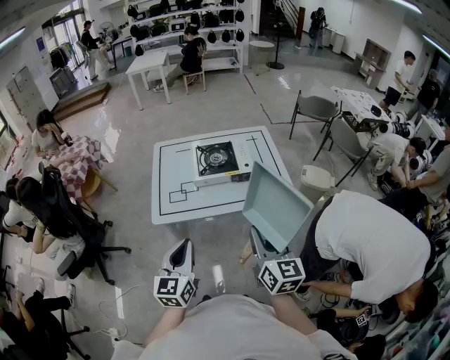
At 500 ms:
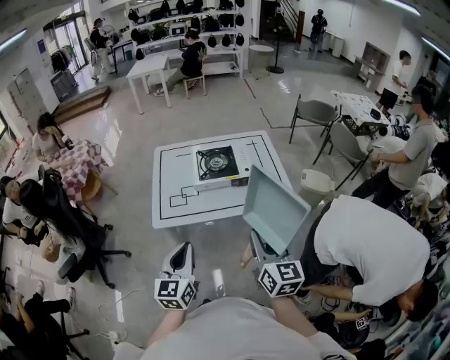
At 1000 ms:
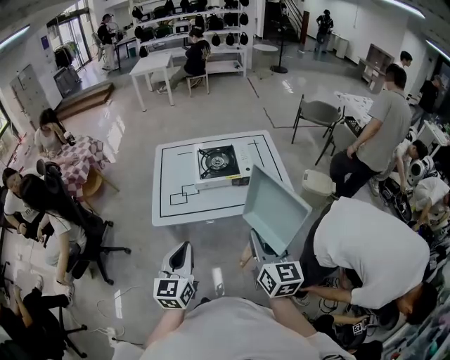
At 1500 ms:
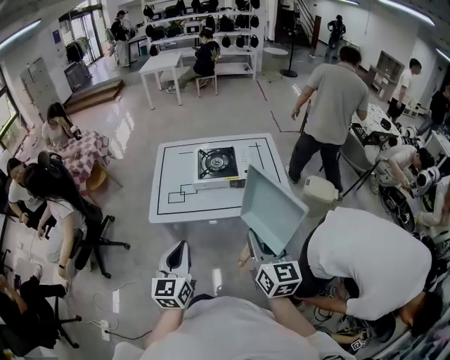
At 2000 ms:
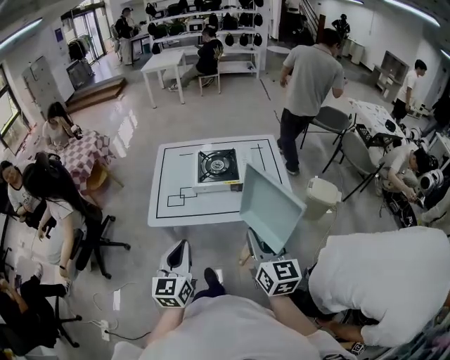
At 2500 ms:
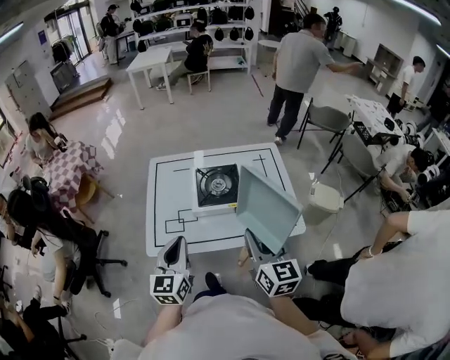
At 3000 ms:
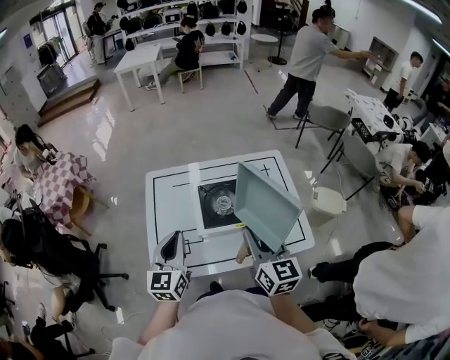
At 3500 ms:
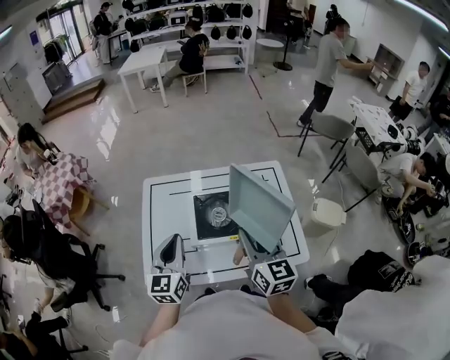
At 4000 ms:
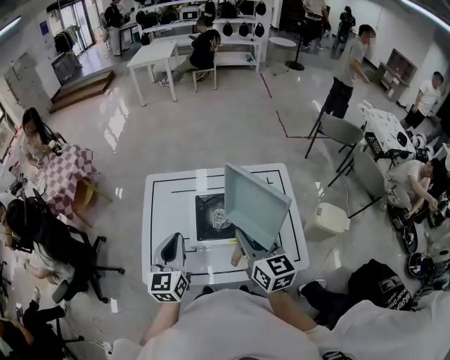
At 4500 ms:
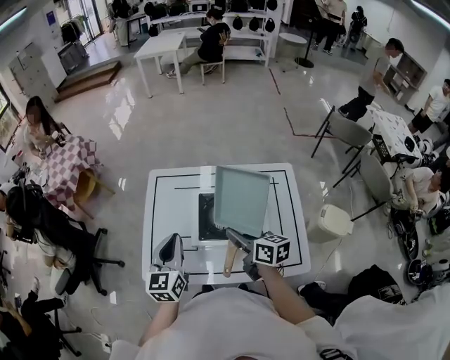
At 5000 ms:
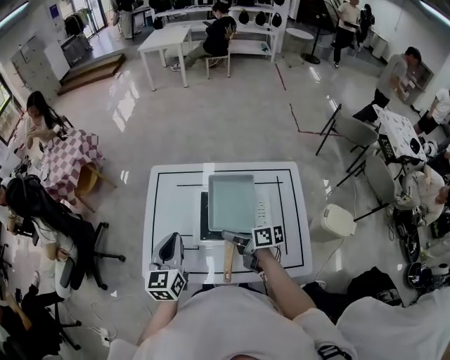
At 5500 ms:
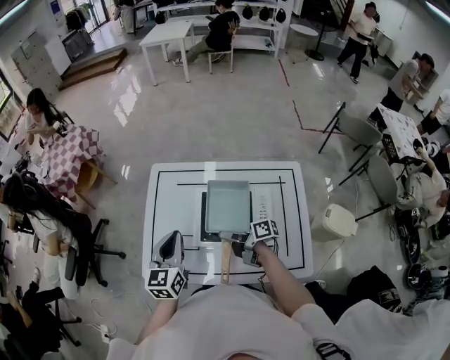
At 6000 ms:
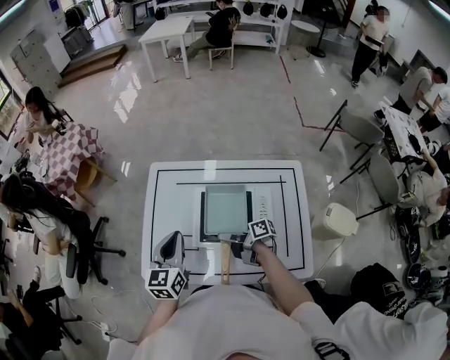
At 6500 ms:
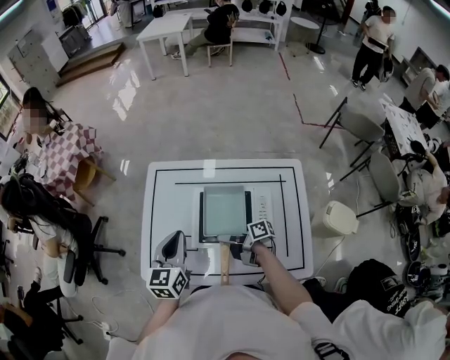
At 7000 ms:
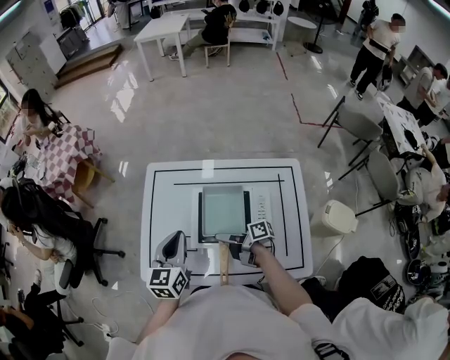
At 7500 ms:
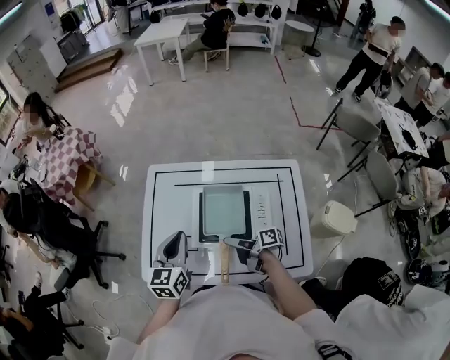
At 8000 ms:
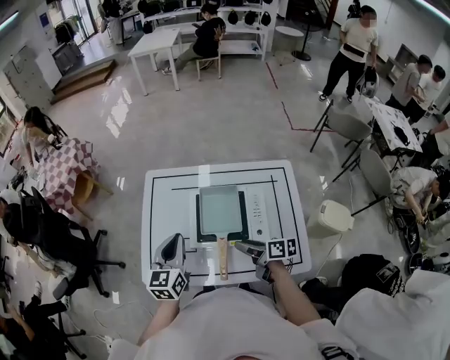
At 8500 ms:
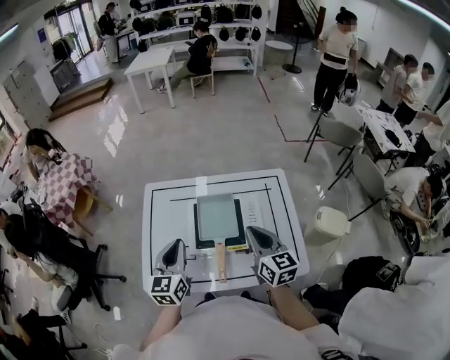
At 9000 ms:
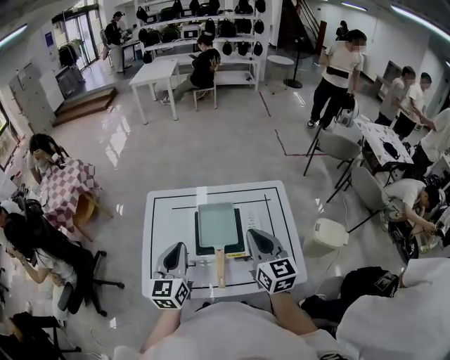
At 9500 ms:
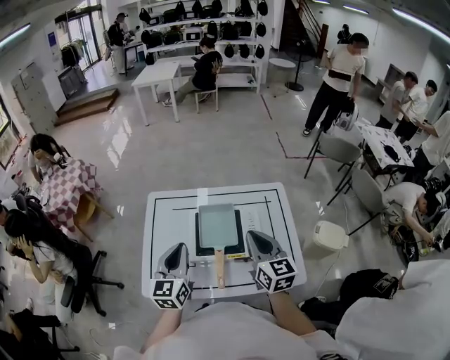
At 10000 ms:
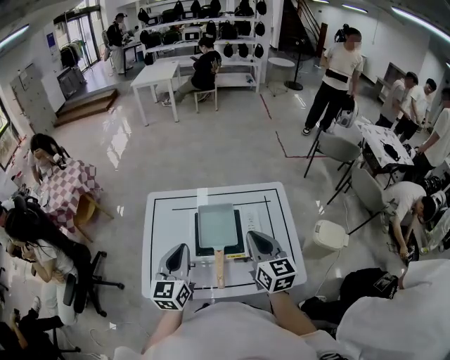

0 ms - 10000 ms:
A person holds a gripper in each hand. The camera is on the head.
0 ms - 2000 ms: The right gripper moves approximately 5 cm.
2000 ms - 4000 ms: Both grippers travel together forward, approximately 35 cm.
4000 ms - 6000 ms: The right gripper travels downward by about 25 cm, and rotates roughly 80 degrees; the left gripper changes place by about 5 cm.
6000 ms - 8000 ms: The right gripper travels backward, upward and to the right by approximately 10 cm, turns by about 30 degrees, and opens.
8000 ms - 10000 ms: The left gripper moves upward, approximately 5 cm. Meanwhile the right gripper shifts some 20 cm upward, rotates some 60 degrees, and closes.

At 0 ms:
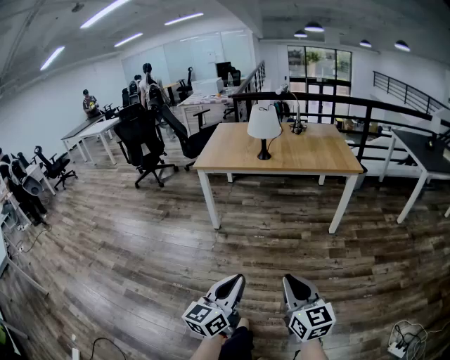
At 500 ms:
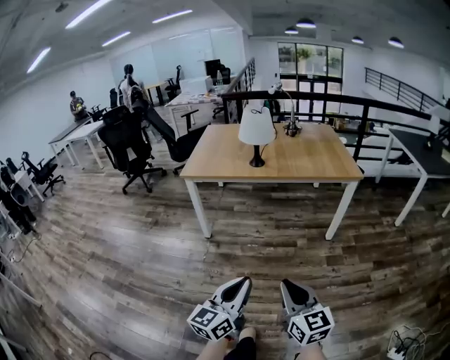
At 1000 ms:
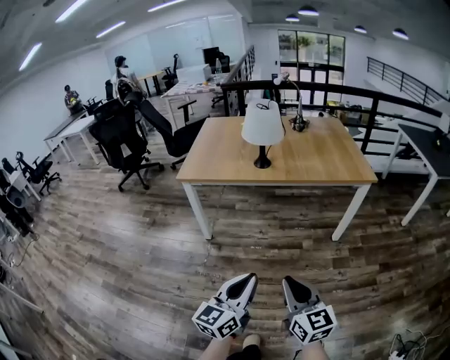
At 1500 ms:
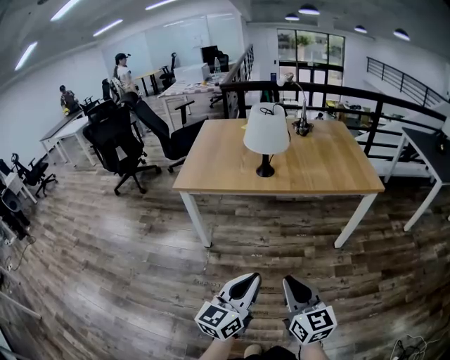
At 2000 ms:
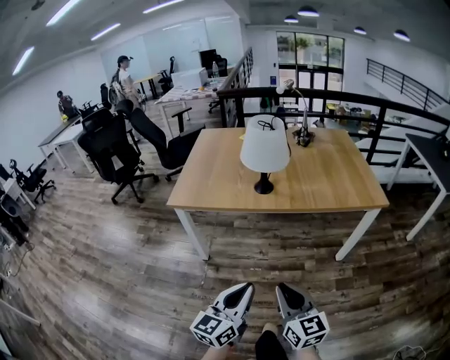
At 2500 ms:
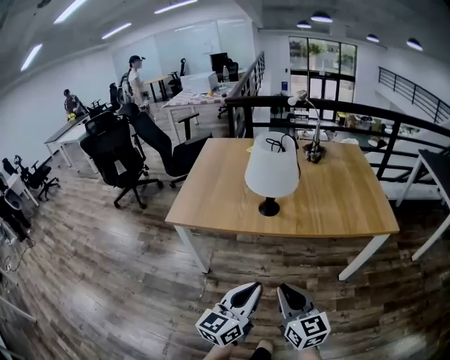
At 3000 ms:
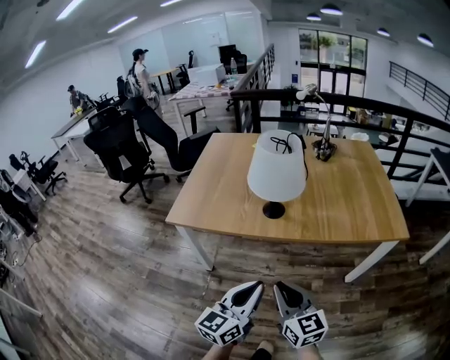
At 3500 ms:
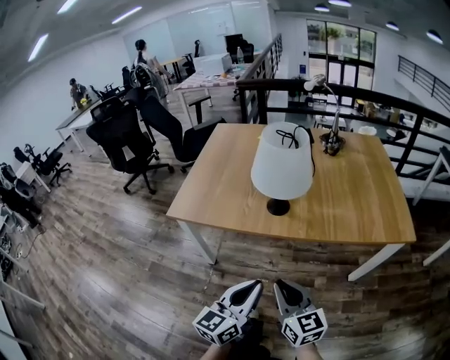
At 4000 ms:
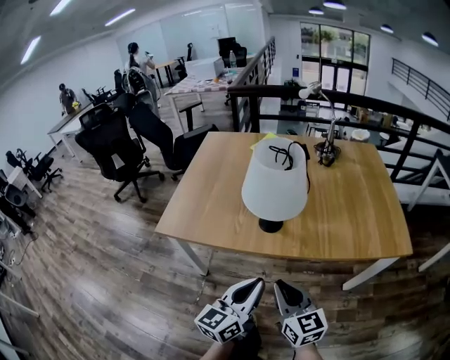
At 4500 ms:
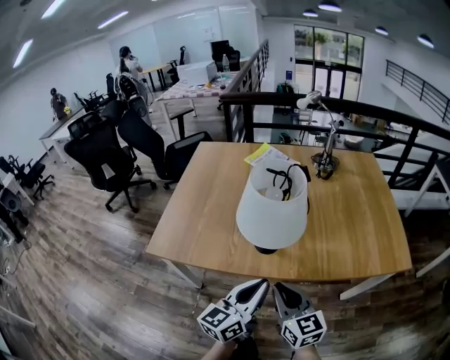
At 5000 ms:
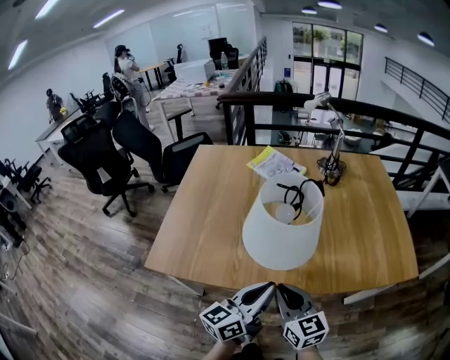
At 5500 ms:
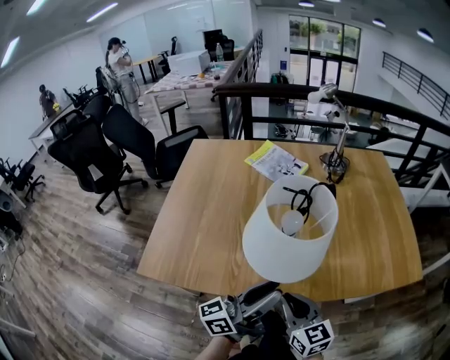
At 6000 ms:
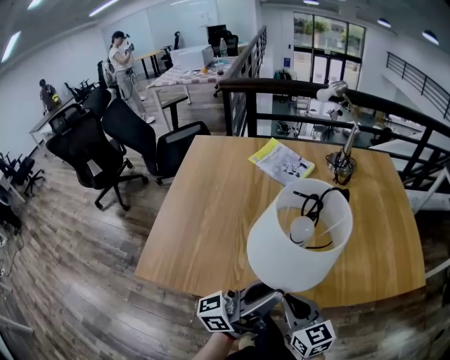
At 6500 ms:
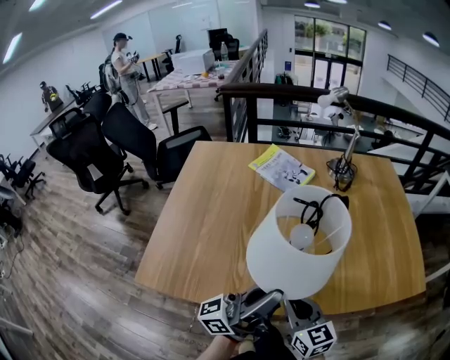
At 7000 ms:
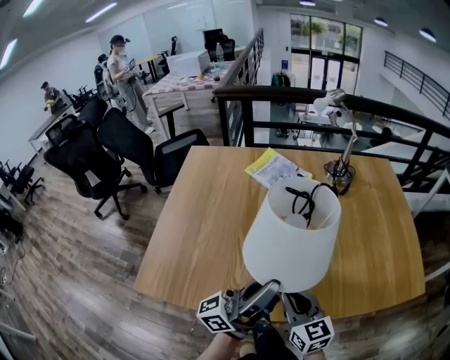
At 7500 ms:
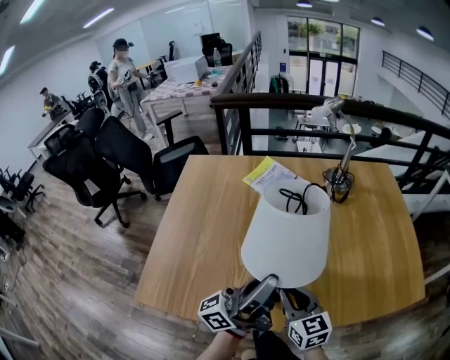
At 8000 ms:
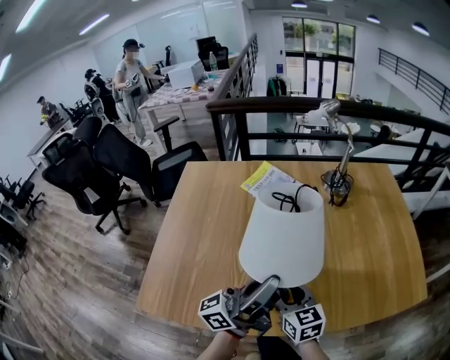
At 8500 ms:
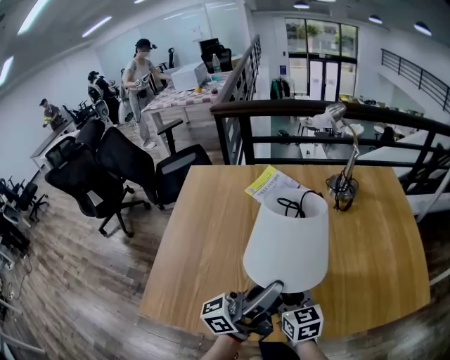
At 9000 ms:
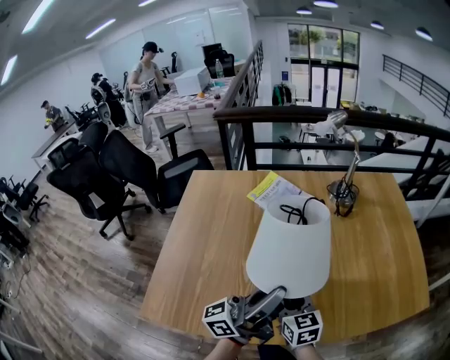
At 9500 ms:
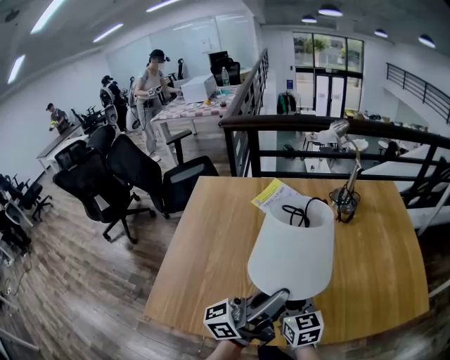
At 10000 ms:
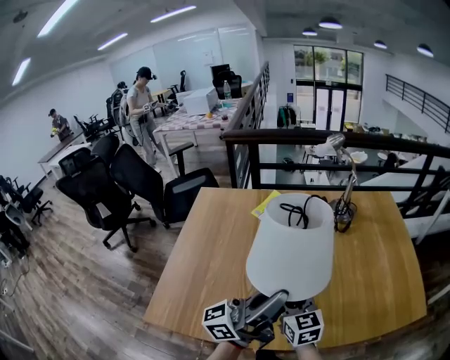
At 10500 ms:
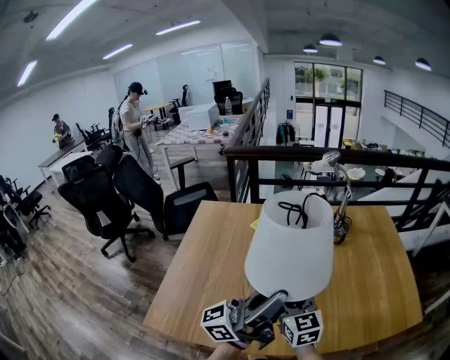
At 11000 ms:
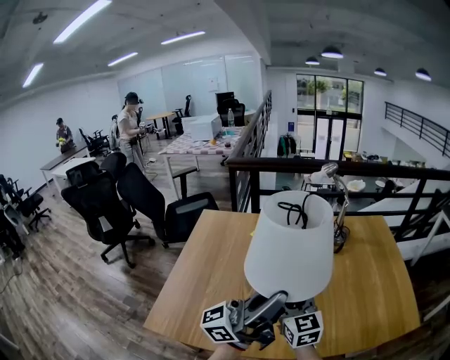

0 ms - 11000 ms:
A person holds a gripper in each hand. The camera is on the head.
0 ms - 2000 ms: Both grippers are carried forward, some 40 cm.
2000 ms - 3500 ms: The grippers both shift forward by approximately 20 cm.
3500 ms - 5500 ms: Both grippers move forward, roughly 25 cm. The left gripper turns by roughly 50 degrees, and opens its fingers.
5500 ms - 7500 ms: The right gripper moves forward, about 10 cm; the left gripper goes roughly 15 cm forward and upward, and closes its fingers.
7500 ms - 9000 ms: The right gripper moves roughly 5 cm, and opens its fingers.
9000 ms - 11000 ms: Both grippers travel together upward, roughly 15 cm. The right gripper rotates about 20 degrees.

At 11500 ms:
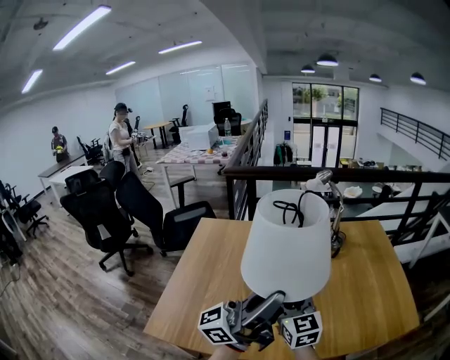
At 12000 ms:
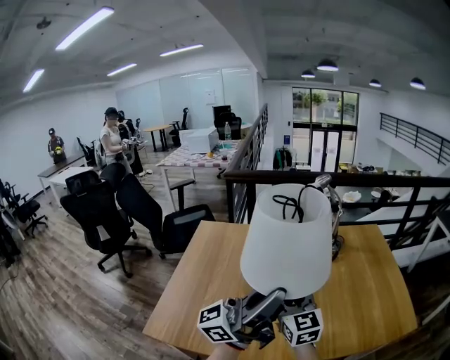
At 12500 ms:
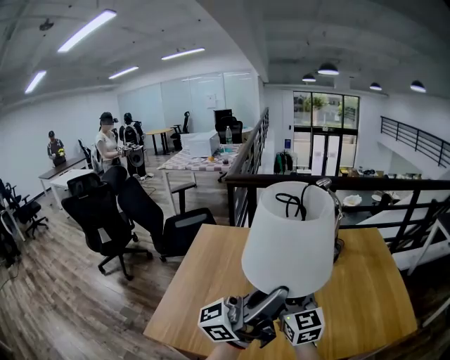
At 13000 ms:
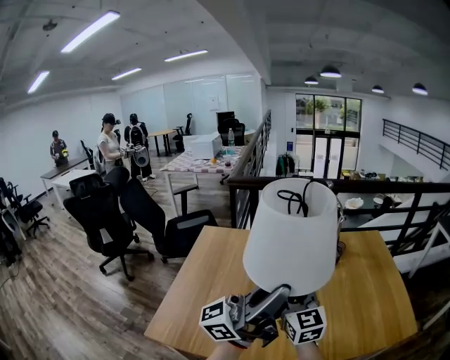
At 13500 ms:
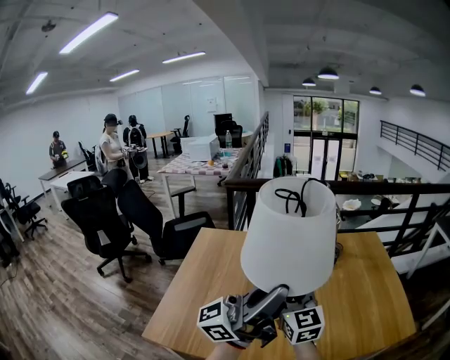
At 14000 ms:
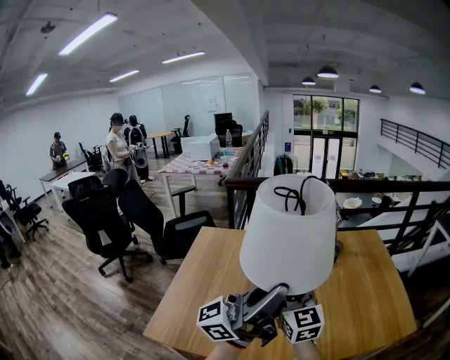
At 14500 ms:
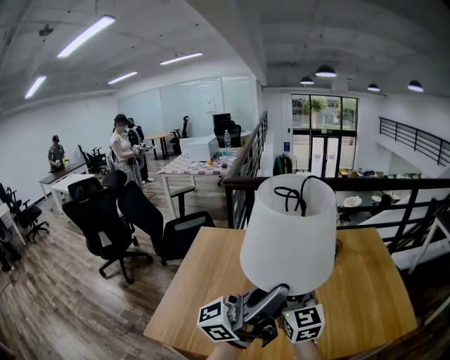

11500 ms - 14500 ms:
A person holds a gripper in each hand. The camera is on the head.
11500 ms - 13000 ms: The right gripper travels upward by about 5 cm.
13000 ms - 14500 ms: The grippers make only small movements.

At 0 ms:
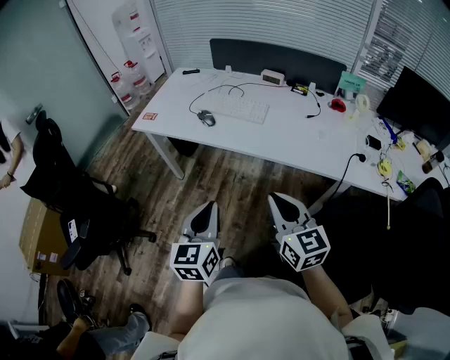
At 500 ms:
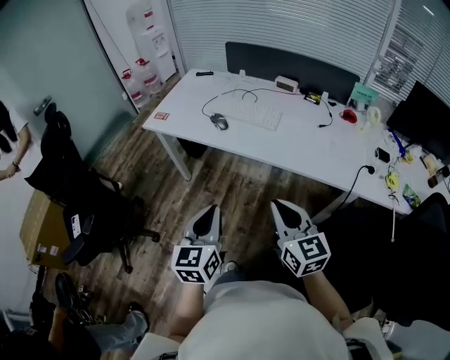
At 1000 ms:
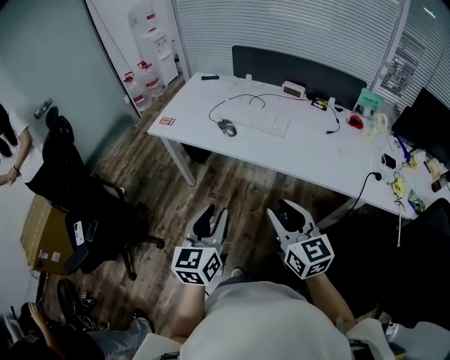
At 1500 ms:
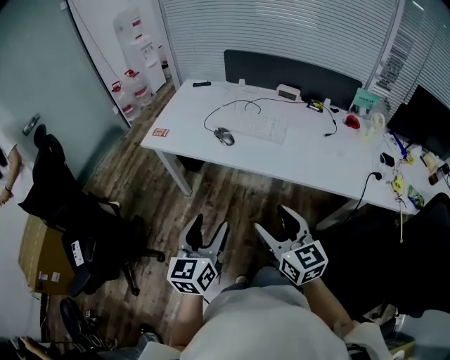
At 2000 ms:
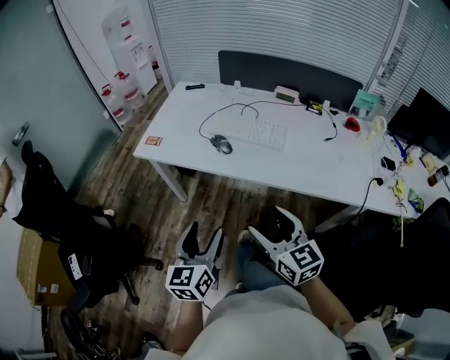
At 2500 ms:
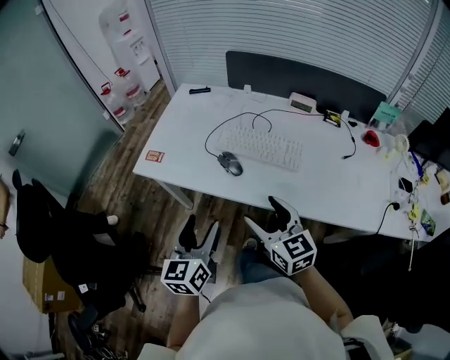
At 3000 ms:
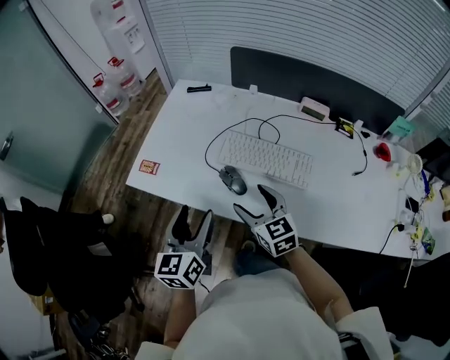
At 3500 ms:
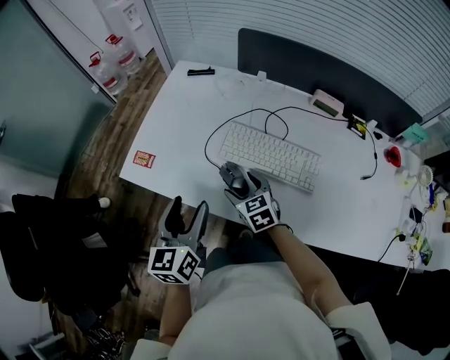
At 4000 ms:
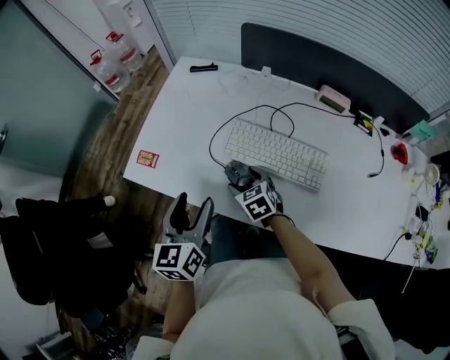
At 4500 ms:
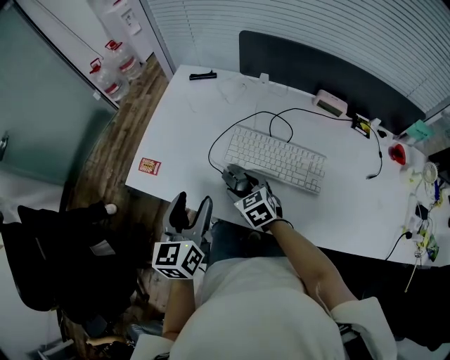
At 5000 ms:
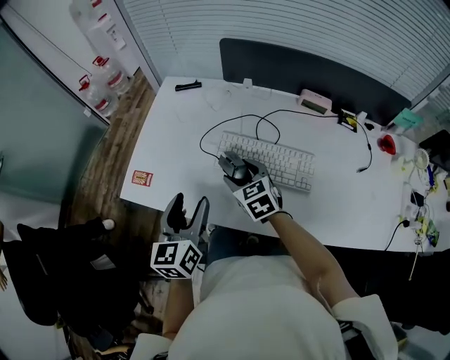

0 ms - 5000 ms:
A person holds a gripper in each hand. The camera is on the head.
0 ms - 2500 ms: The two grippers go about 30 cm forward and to the left. The right gripper opens its fingers. Meanwhile the left gripper opens.
2500 ms - 5000 ms: The left gripper moves forward, about 20 cm; the right gripper moves forward and downward, roughly 30 cm, and changes its angle by roughly 20 degrees.
